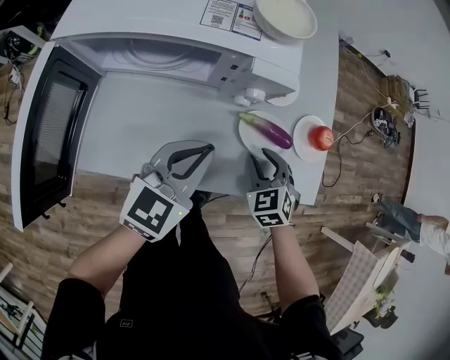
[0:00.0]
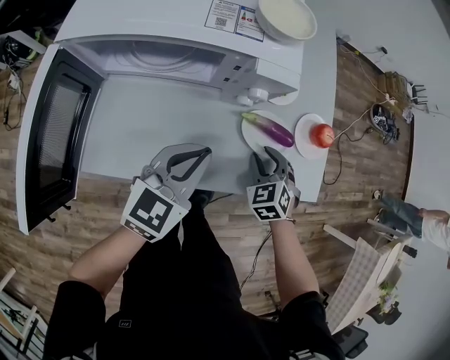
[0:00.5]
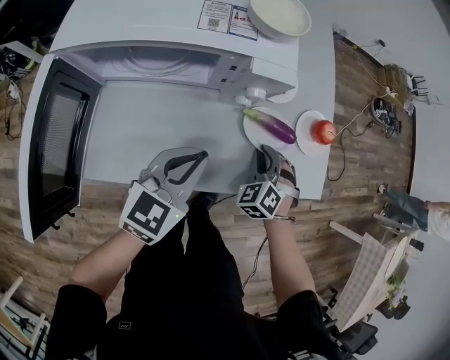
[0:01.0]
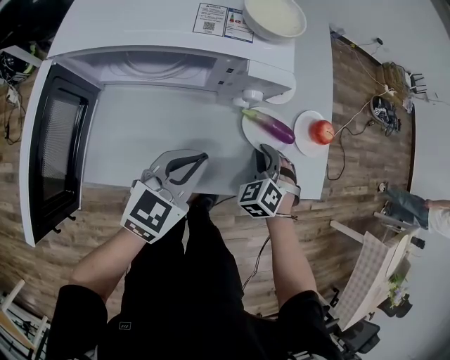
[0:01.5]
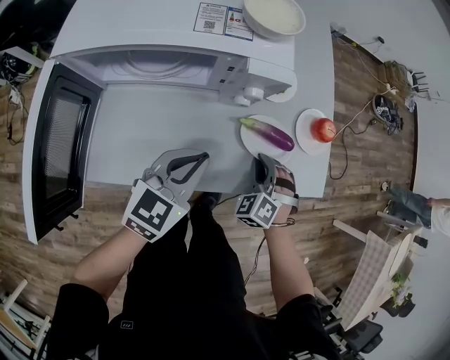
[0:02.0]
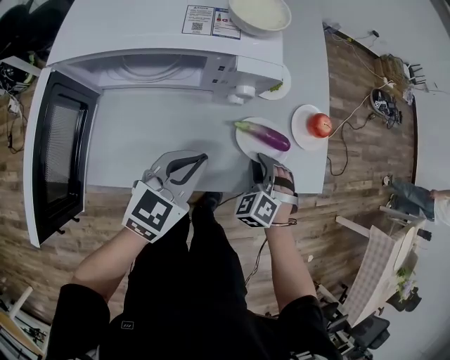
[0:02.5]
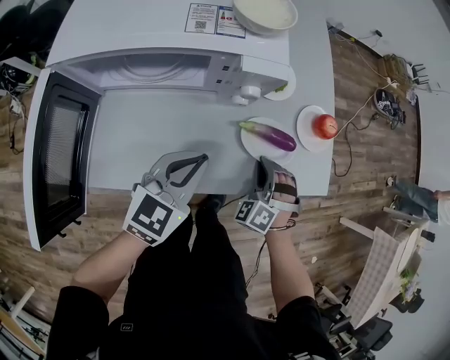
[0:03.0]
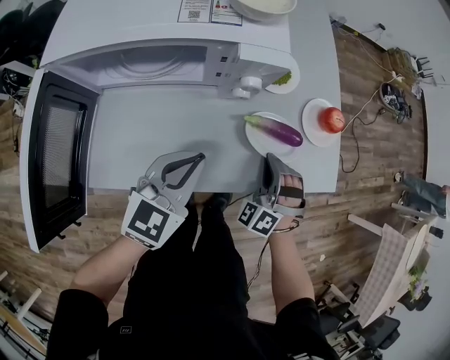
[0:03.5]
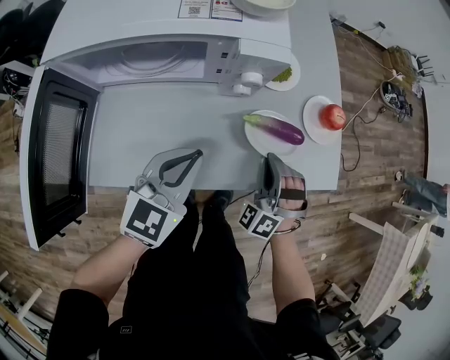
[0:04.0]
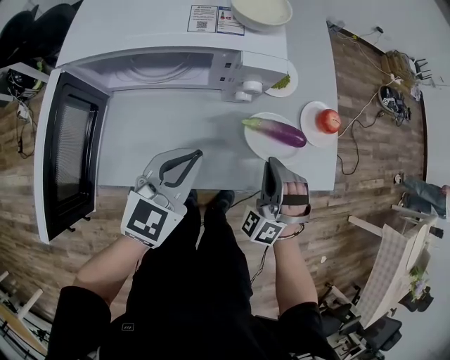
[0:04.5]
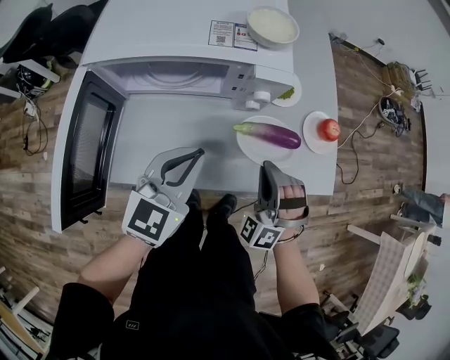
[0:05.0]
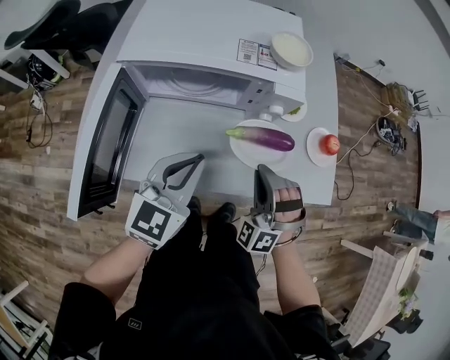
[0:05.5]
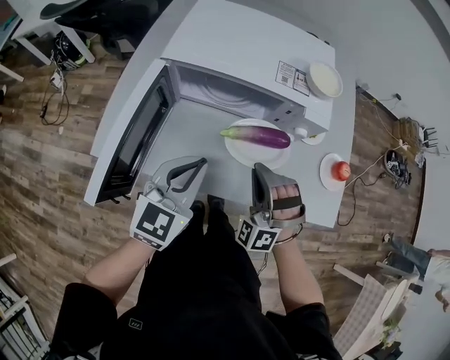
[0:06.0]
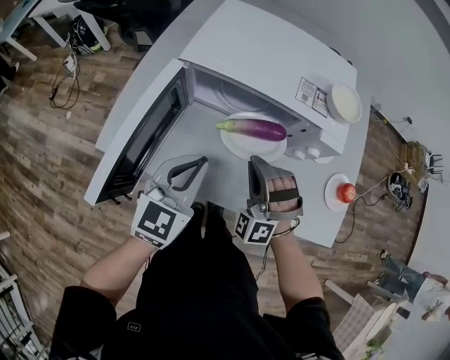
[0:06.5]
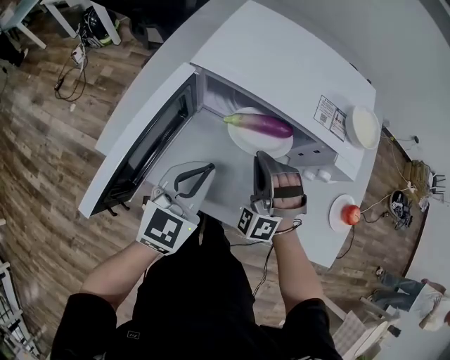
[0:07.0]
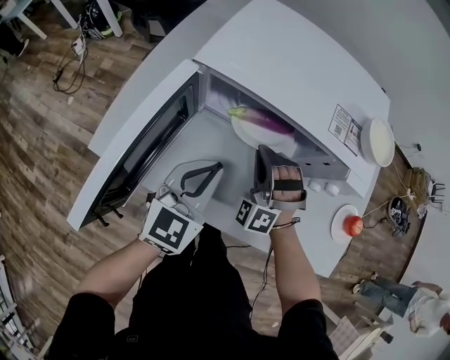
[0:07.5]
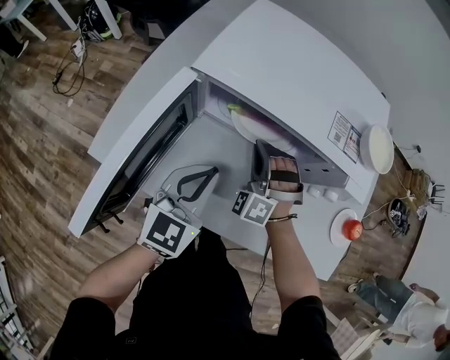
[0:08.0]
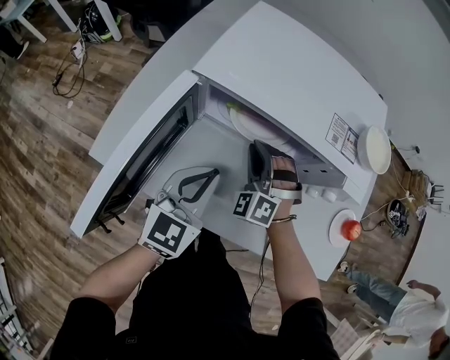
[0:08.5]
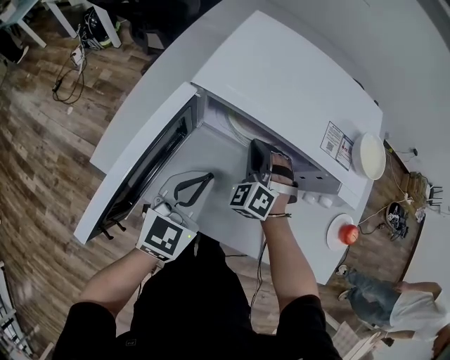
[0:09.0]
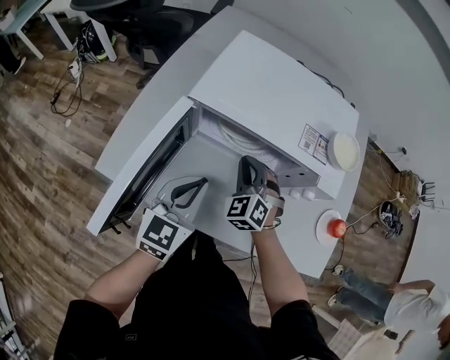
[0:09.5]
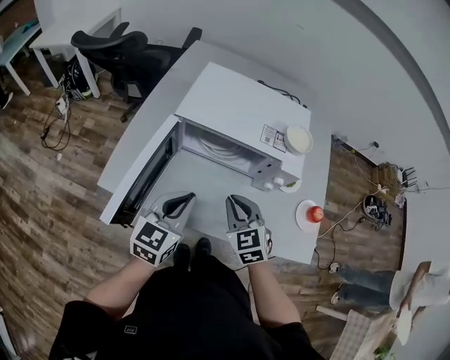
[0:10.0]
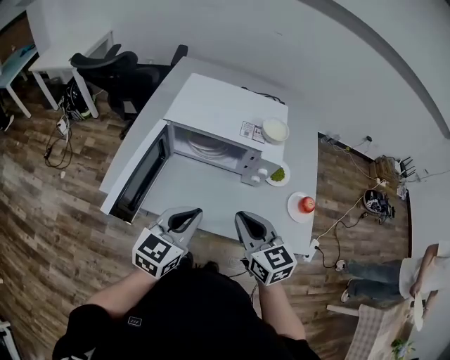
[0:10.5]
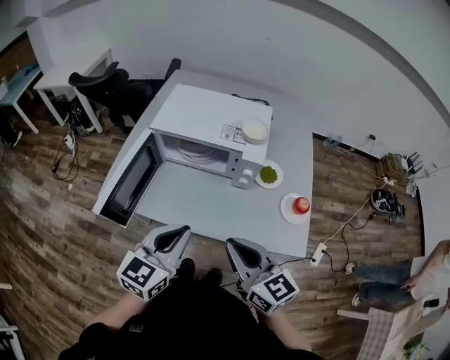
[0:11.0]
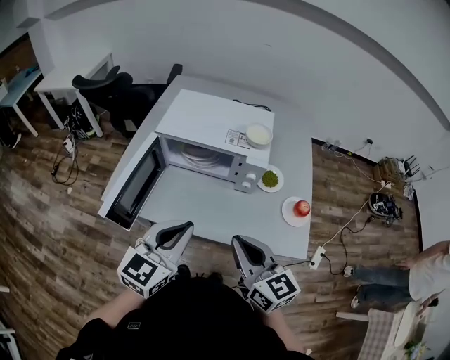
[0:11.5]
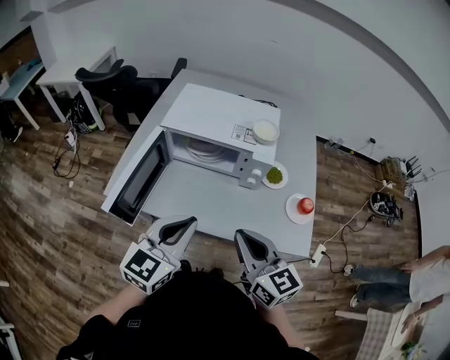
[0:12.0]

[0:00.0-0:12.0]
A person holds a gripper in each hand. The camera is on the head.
0:00.0 to 0:02.0: The right gripper rotates some 30 degrees.
0:02.0 to 0:04.0: The right gripper changes its angle by about 20 degrees.
0:04.0 to 0:06.0: The right gripper heads to the left and upward, covering approximately 25 cm, and turns by approximately 30 degrees. Meanwhile the left gripper heads to the left, upward and backward, covering about 15 cm.
0:06.0 to 0:08.0: The right gripper moves forward, to the left and downward, approximately 20 cm, while the left gripper heads downward and forward, covering about 10 cm.
0:08.0 to 0:10.0: The right gripper goes roughly 20 cm backward and upward, and rotates around the line of its fingers by roughly 60 degrees, clockwise from behind. Meanwhile the left gripper heads upward and backward, covering approximately 15 cm.
0:10.0 to 0:12.0: The grippers both shift backward, upward and to the right by some 20 cm. The right gripper turns by about 40 degrees.

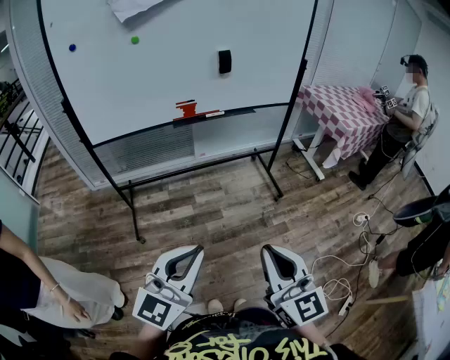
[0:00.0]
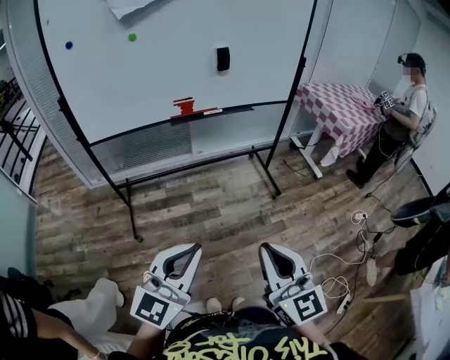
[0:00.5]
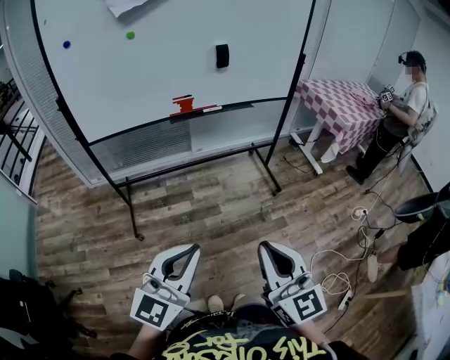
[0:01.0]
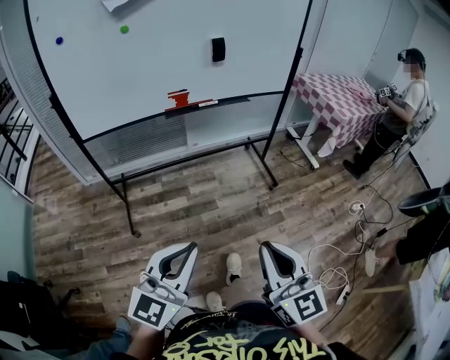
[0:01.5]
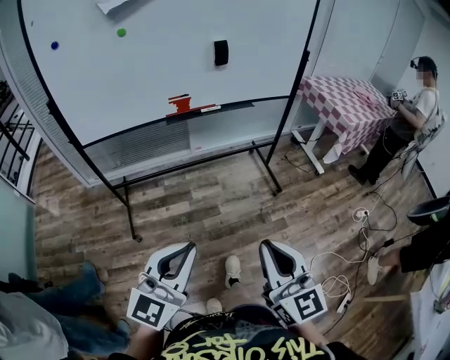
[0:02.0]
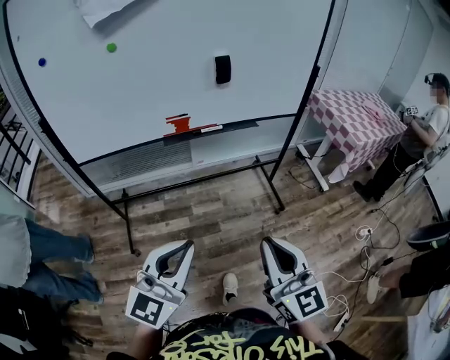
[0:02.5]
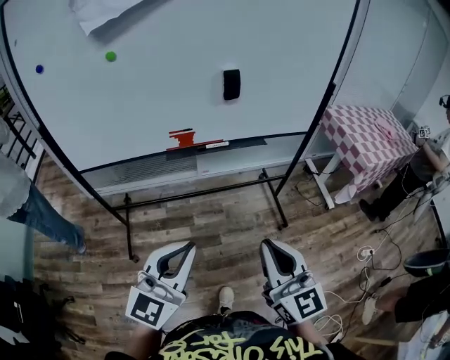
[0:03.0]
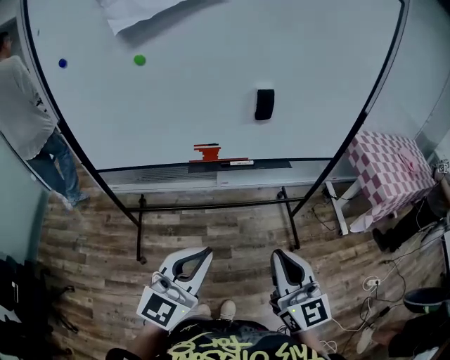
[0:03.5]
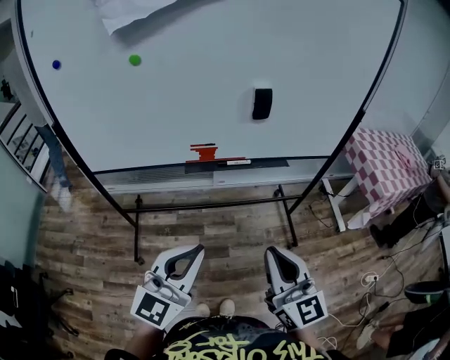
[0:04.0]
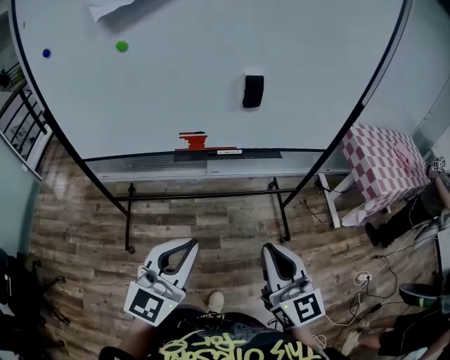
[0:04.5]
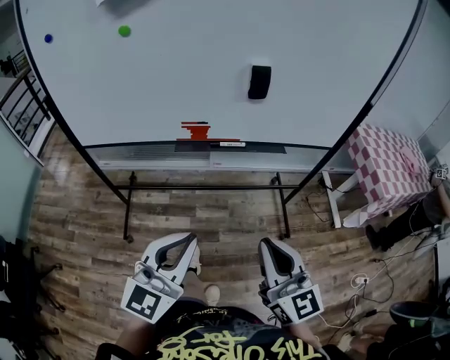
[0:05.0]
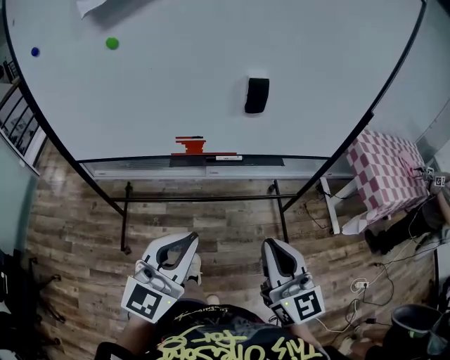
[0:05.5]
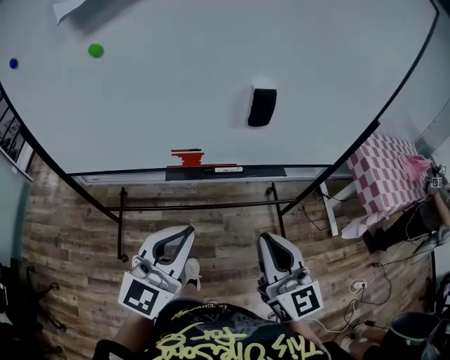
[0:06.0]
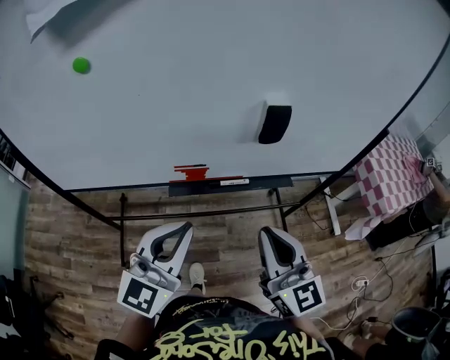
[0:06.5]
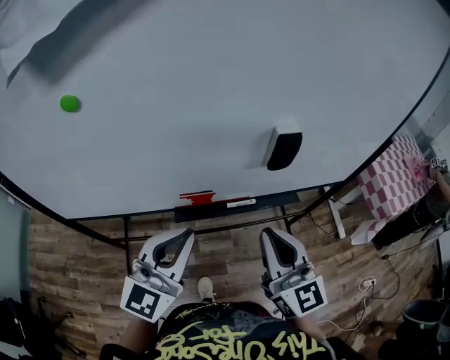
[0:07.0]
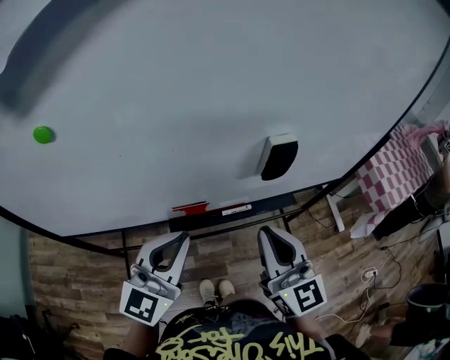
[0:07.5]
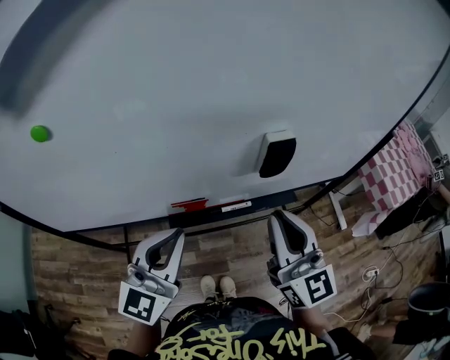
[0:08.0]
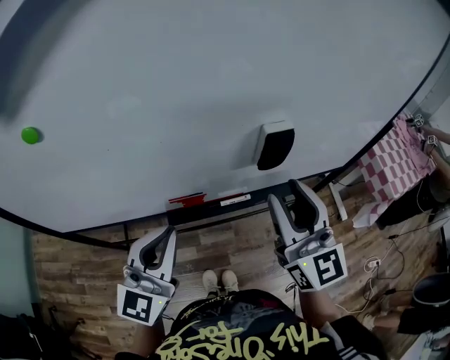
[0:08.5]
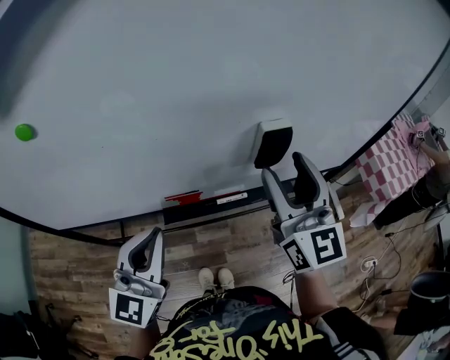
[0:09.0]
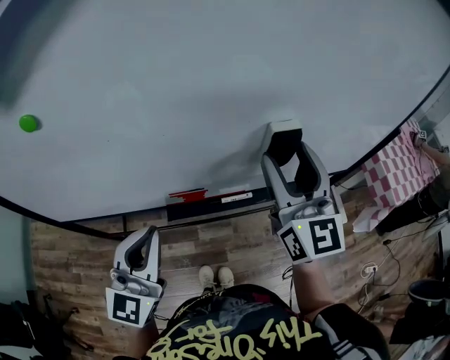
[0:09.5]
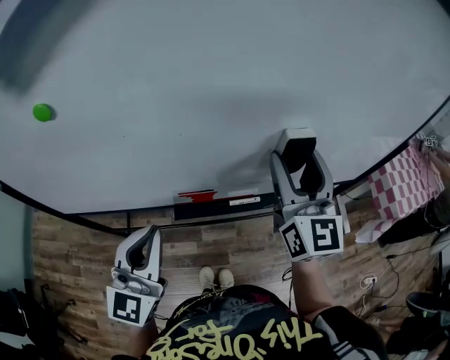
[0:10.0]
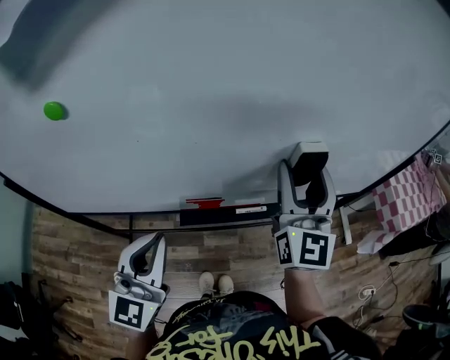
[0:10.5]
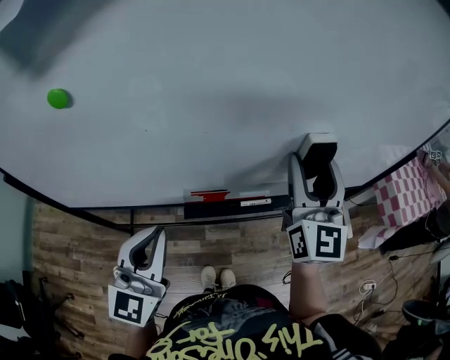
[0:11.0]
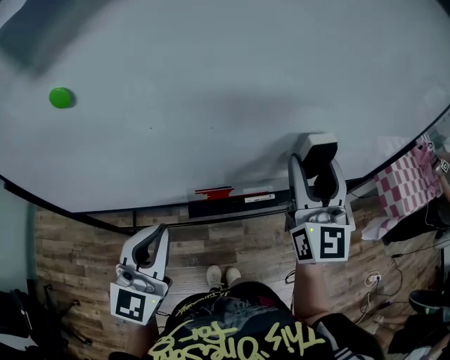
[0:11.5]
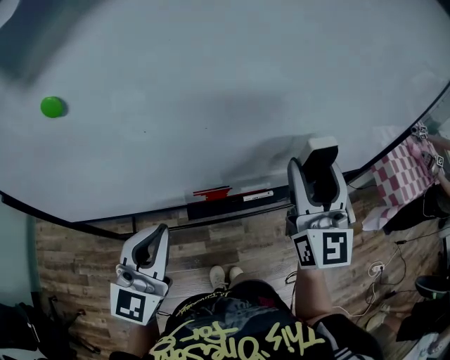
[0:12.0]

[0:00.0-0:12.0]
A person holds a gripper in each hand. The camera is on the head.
0:00.0 to 0:02.0: The grippers make only small movements.
0:02.0 to 0:04.0: Both grippers move forward, some 25 cm.
0:04.0 to 0:06.0: The two grippers go approximately 10 cm forward.
0:06.0 to 0:08.0: The right gripper is displaced forward by roughly 15 cm. The left gripper is displaced forward and to the left by roughly 15 cm.
0:08.0 to 0:10.0: The left gripper heads to the left, covering roughly 5 cm. Meanwhile the right gripper shifts some 10 cm forward, and opens.
0:10.0 to 0:12.0: The grippers make only small movements.

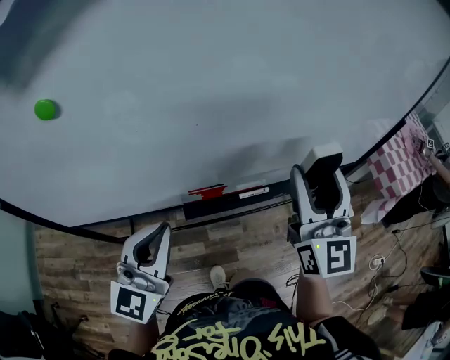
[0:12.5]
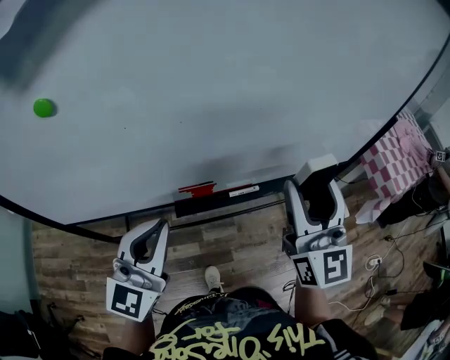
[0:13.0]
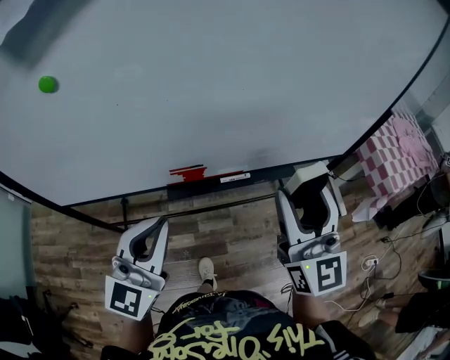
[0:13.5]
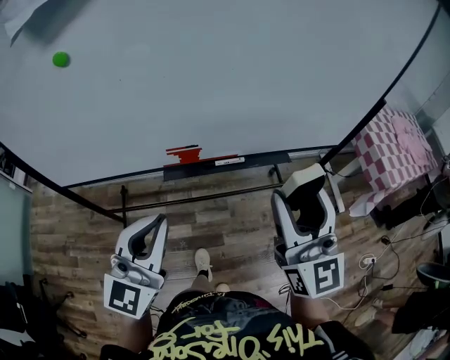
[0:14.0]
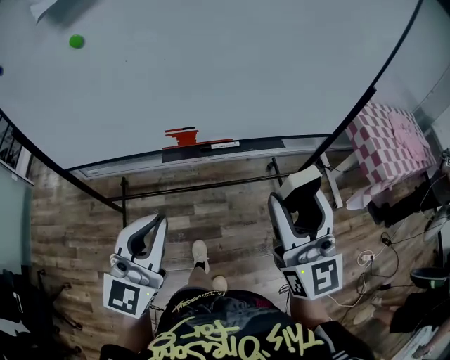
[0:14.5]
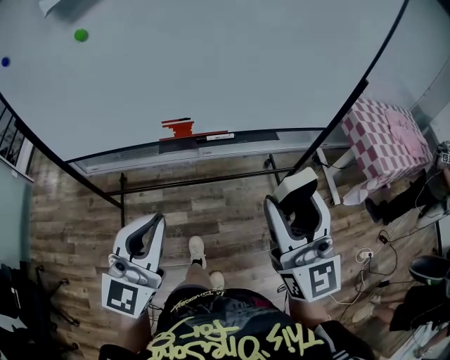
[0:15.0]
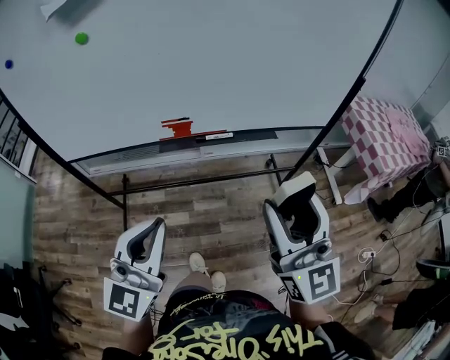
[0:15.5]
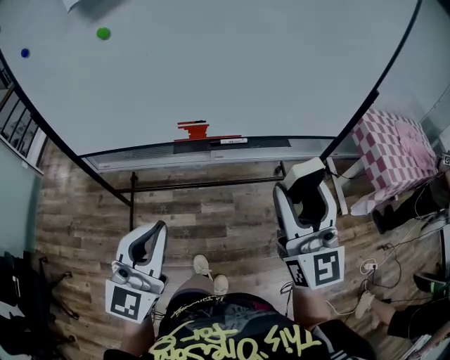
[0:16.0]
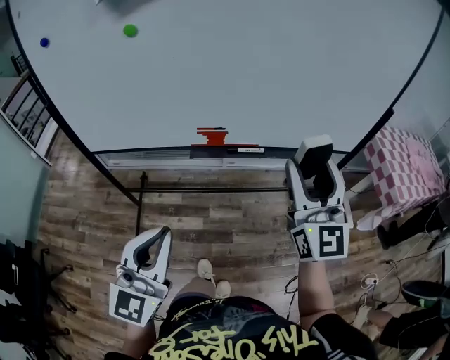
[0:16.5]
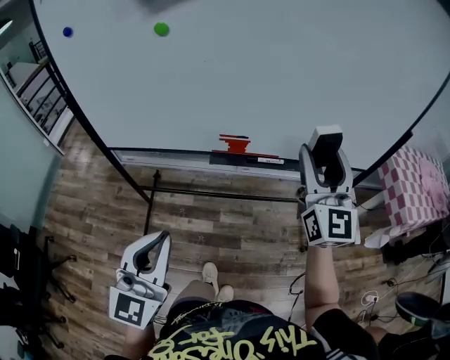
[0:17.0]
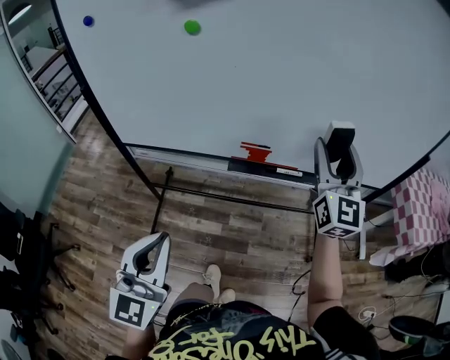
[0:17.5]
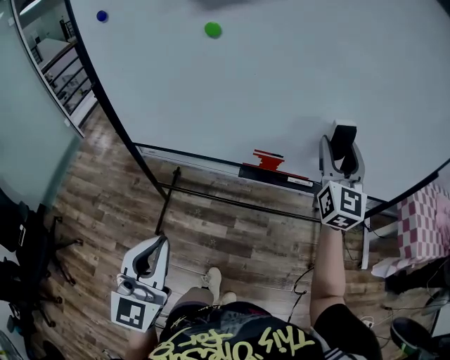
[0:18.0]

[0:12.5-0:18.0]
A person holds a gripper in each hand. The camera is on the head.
0:12.5 to 0:14.5: The left gripper goes some 20 cm backward and to the right. Meanwhile the right gripper is displaced backward by approximately 20 cm.
0:14.5 to 0:16.0: The left gripper goes approximately 5 cm backward.
0:16.0 to 0:18.0: The right gripper moves forward, about 25 cm, while the left gripper moves to the left, approximately 10 cm, and rotates roughly 20 degrees.
